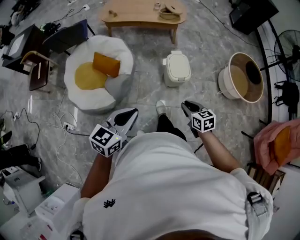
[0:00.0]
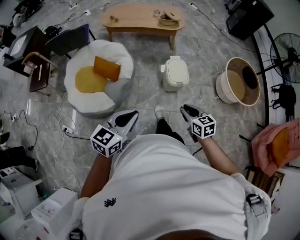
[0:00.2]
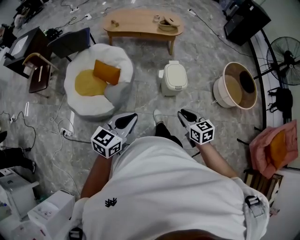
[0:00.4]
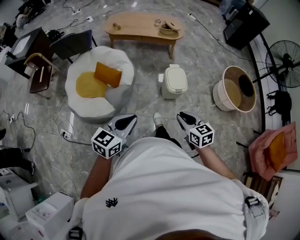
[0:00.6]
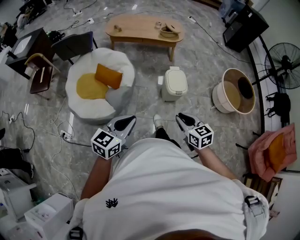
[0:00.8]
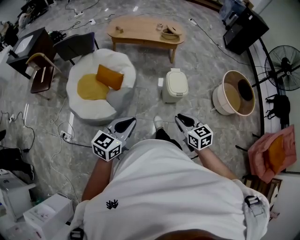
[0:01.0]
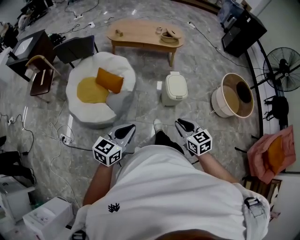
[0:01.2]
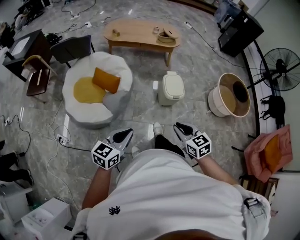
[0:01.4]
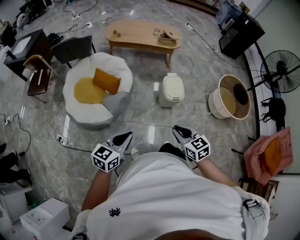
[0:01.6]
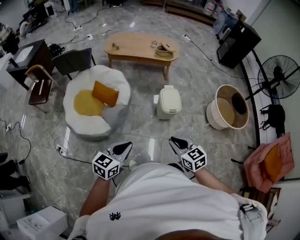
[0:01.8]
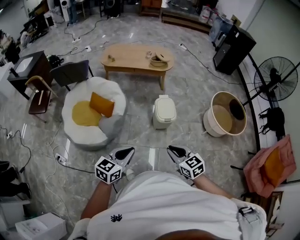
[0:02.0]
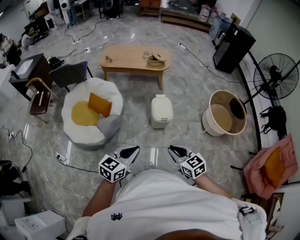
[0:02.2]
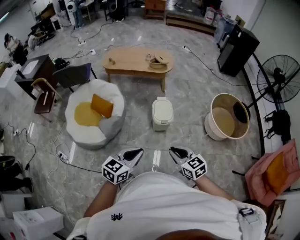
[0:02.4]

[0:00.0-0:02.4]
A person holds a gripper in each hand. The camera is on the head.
0:00.0 to 0:01.2: The right gripper moves upward, to the left and backward, some 15 cm. Meanwhile the left gripper shifts roughly 10 cm backward and to the left.
0:01.2 to 0:02.4: The grippers both shift to the right by some 20 cm.

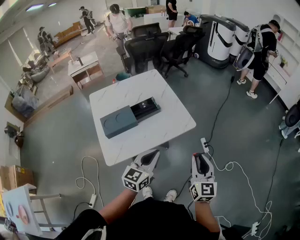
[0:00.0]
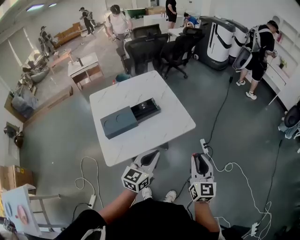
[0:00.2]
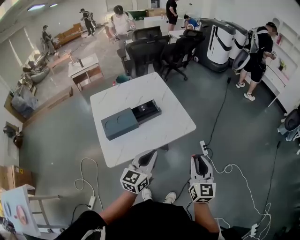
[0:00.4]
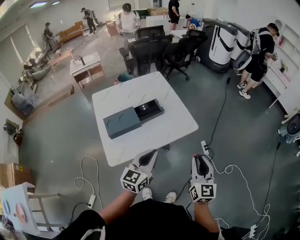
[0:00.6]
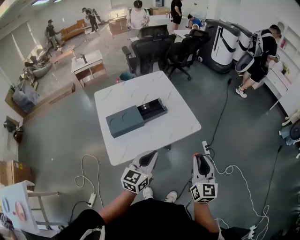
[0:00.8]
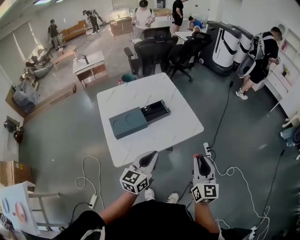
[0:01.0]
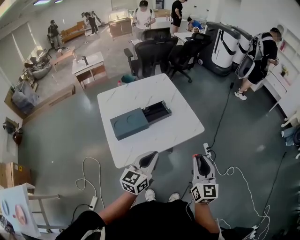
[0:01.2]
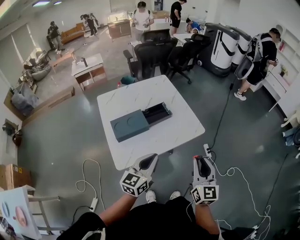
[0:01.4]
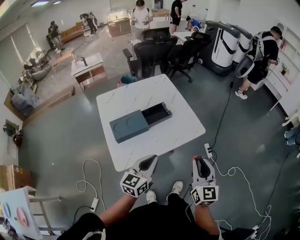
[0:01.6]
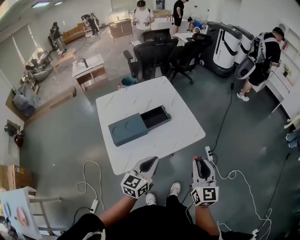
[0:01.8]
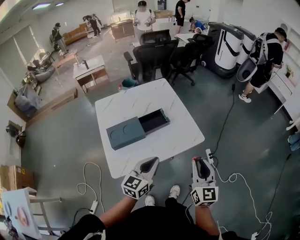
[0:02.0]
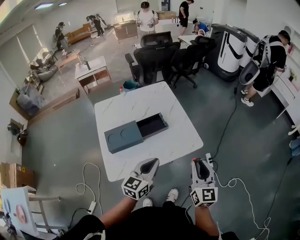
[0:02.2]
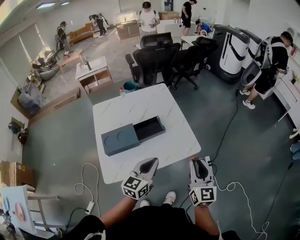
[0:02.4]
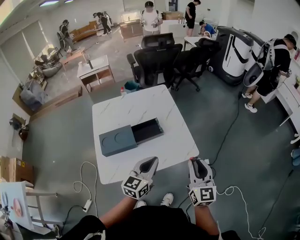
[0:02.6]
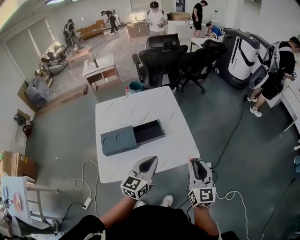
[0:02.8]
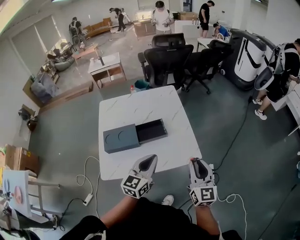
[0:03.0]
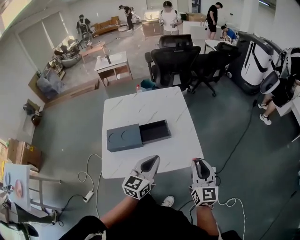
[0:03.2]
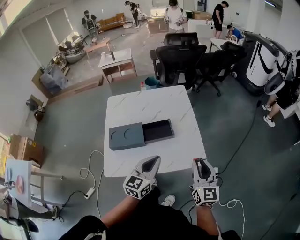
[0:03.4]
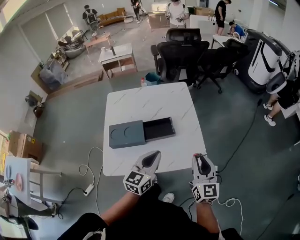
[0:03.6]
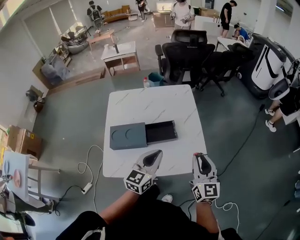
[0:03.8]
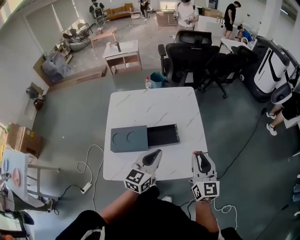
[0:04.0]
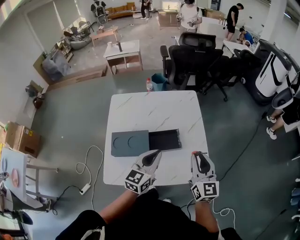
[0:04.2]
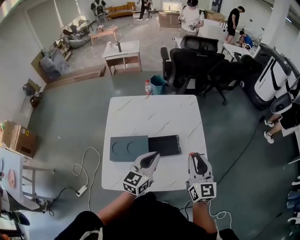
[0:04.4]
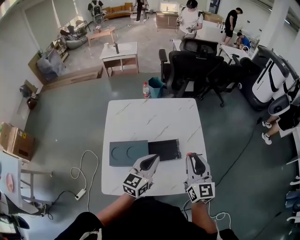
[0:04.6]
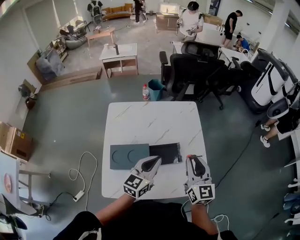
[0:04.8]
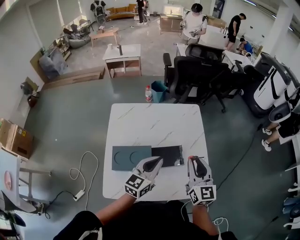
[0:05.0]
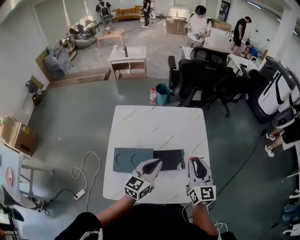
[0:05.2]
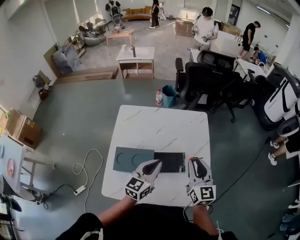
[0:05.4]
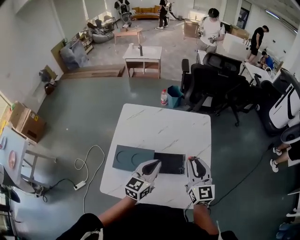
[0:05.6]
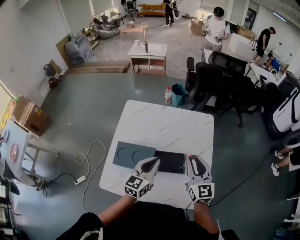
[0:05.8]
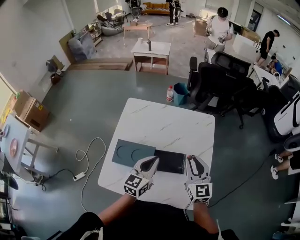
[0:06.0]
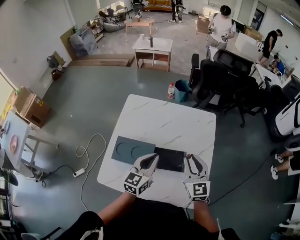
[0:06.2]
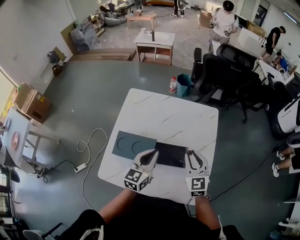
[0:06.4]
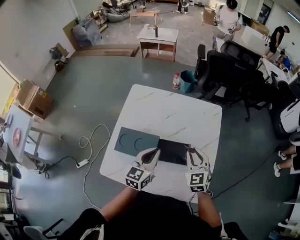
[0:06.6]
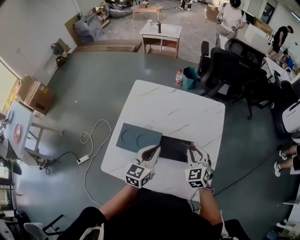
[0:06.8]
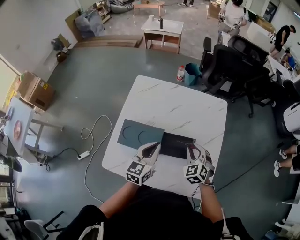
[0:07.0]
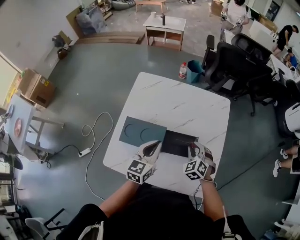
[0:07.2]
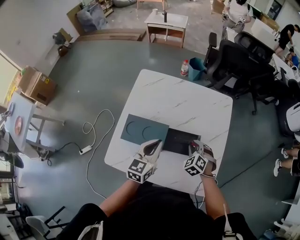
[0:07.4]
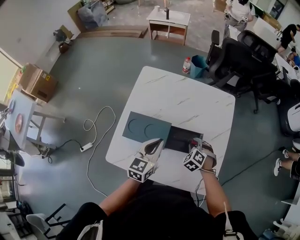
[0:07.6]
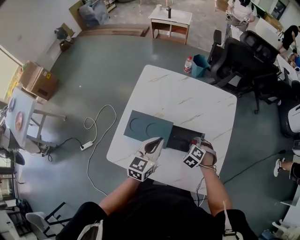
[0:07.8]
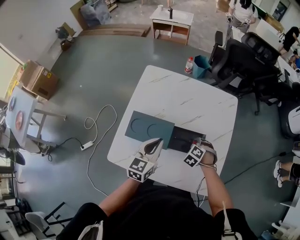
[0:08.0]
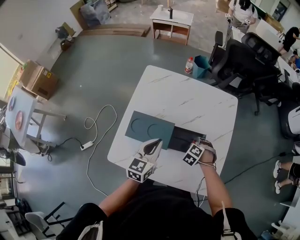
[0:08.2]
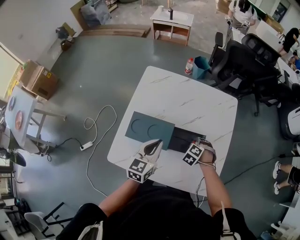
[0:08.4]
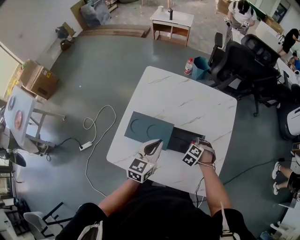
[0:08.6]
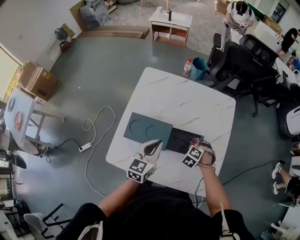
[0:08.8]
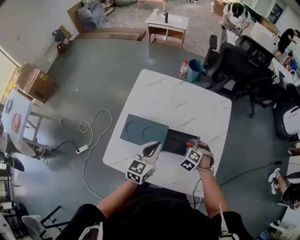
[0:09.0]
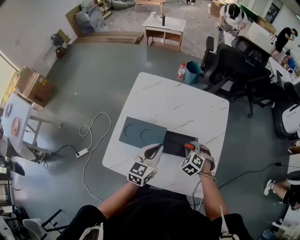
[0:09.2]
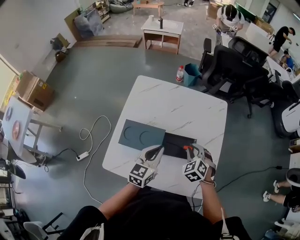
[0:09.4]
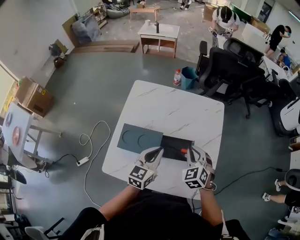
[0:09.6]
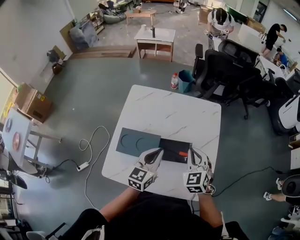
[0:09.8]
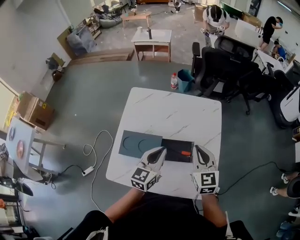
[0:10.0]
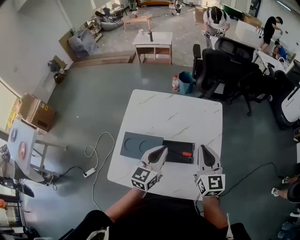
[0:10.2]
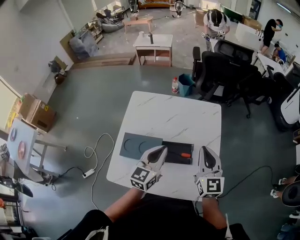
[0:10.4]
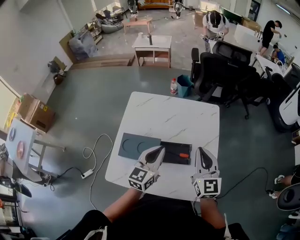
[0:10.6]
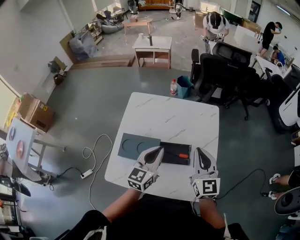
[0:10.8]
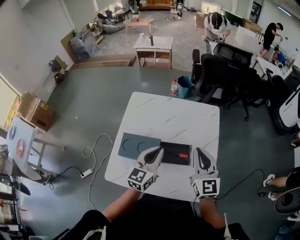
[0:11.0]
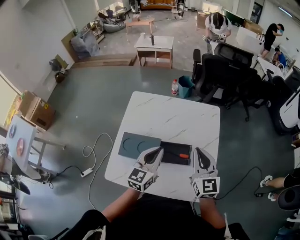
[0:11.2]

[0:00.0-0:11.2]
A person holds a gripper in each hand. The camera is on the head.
0:00.0 to 0:01.6: Both grippers move to the left, roughly 10 cm.
0:01.6 to 0:03.2: The right gripper is displaced forward by roughly 20 cm, while the left gripper goes roughly 15 cm forward and to the right.
0:03.2 to 0:04.8: The two grippers go some 20 cm forward and to the left.
0:04.8 to 0:06.4: The right gripper heads forward and downward, covering roughly 10 cm, and turns by about 30 degrees; the left gripper shifts by roughly 5 cm, and swivels roughly 20 degrees.
0:06.4 to 0:08.0: The right gripper goes about 20 cm downward, and tips its fingers downward by some 50 degrees, while the left gripper moves to the left, roughly 5 cm.
0:08.0 to 0:09.6: The left gripper shifts by some 5 cm; the right gripper travels upward by about 20 cm, and angles its fingers upward, by some 30 degrees.
0:09.6 to 0:11.2: The left gripper travels upward by about 5 cm. The right gripper shifts roughly 10 cm upward, and tips its fingers upward by approximately 30 degrees.

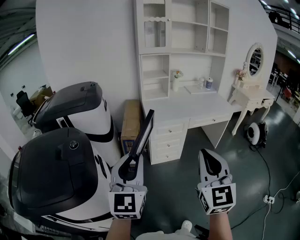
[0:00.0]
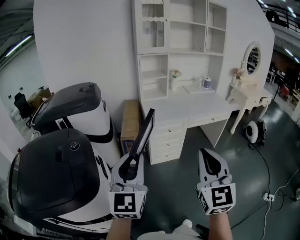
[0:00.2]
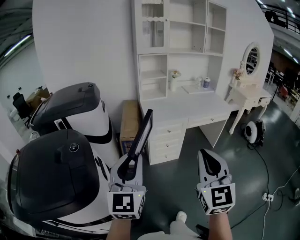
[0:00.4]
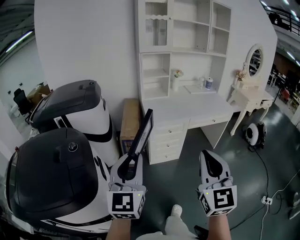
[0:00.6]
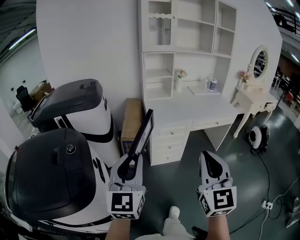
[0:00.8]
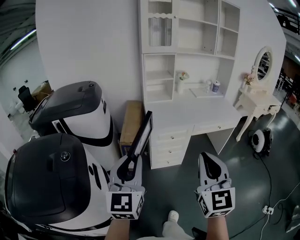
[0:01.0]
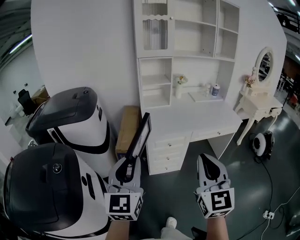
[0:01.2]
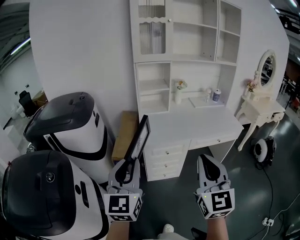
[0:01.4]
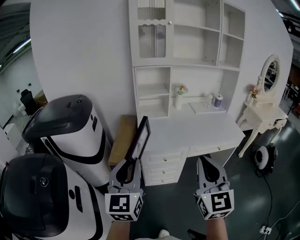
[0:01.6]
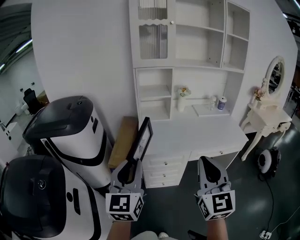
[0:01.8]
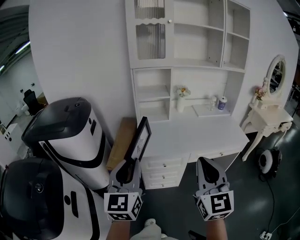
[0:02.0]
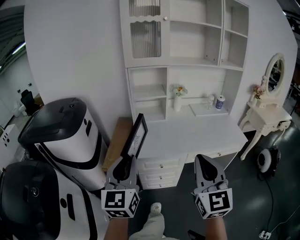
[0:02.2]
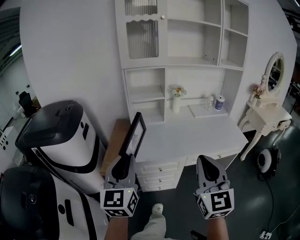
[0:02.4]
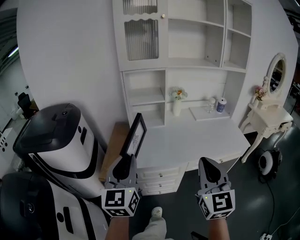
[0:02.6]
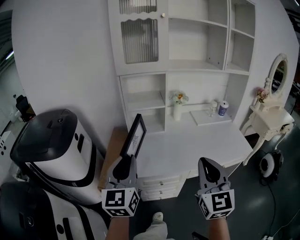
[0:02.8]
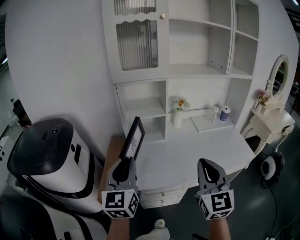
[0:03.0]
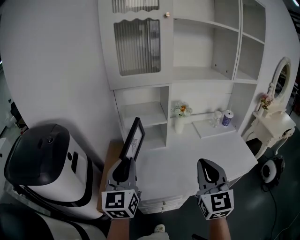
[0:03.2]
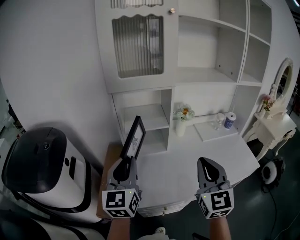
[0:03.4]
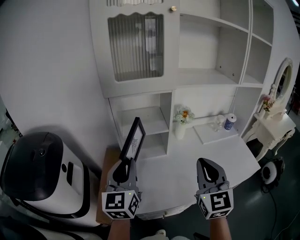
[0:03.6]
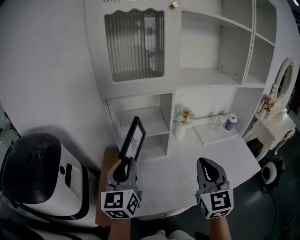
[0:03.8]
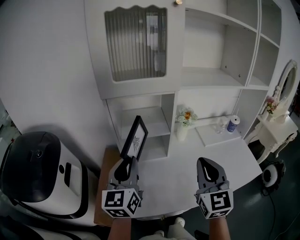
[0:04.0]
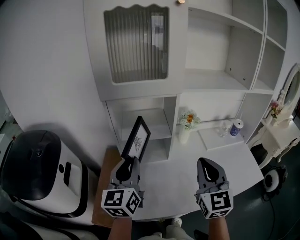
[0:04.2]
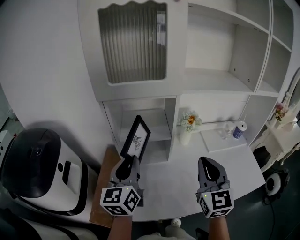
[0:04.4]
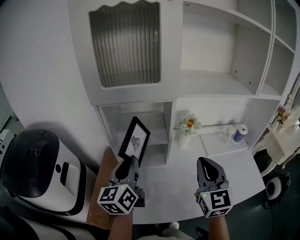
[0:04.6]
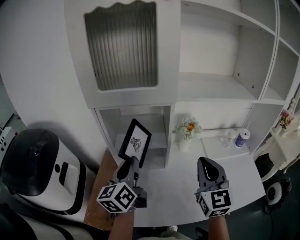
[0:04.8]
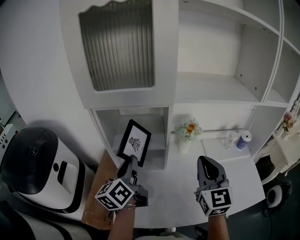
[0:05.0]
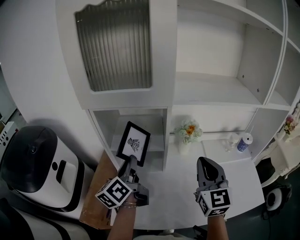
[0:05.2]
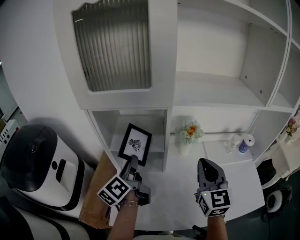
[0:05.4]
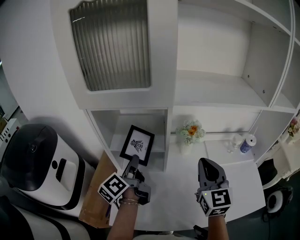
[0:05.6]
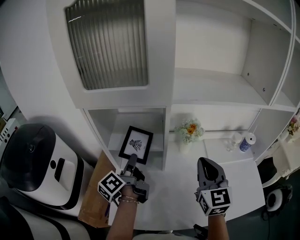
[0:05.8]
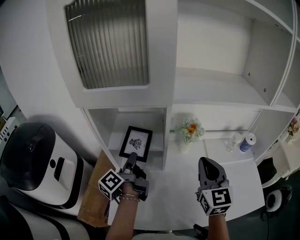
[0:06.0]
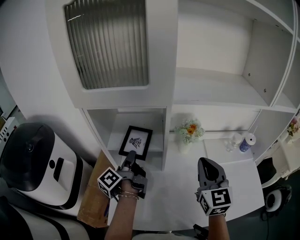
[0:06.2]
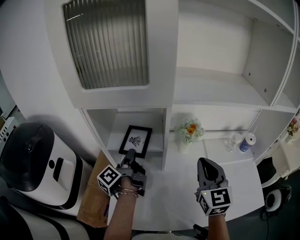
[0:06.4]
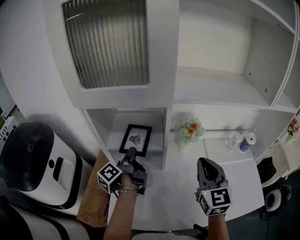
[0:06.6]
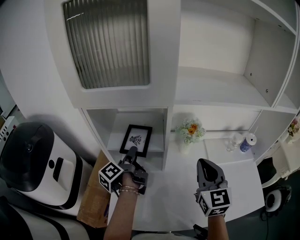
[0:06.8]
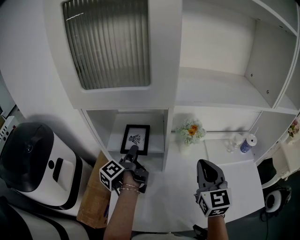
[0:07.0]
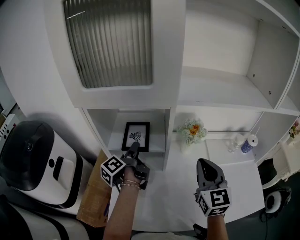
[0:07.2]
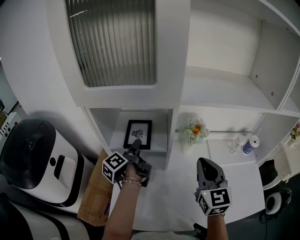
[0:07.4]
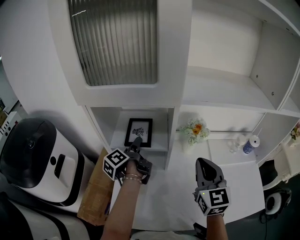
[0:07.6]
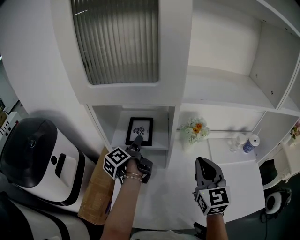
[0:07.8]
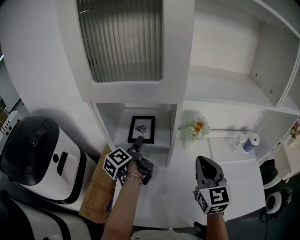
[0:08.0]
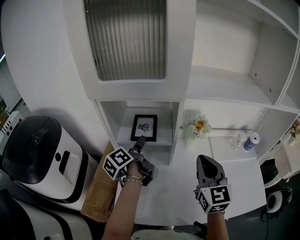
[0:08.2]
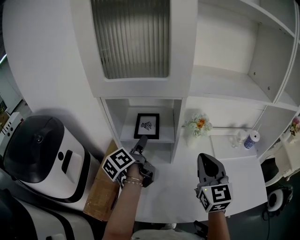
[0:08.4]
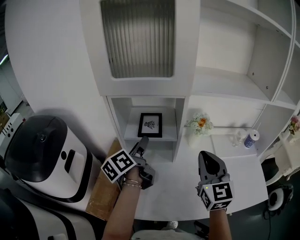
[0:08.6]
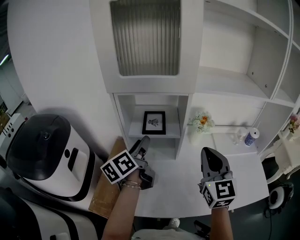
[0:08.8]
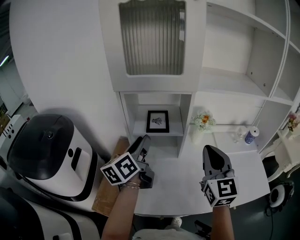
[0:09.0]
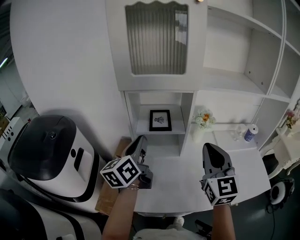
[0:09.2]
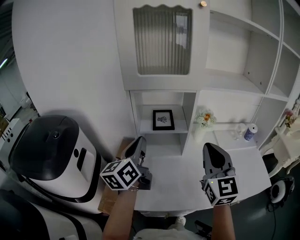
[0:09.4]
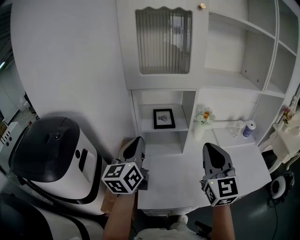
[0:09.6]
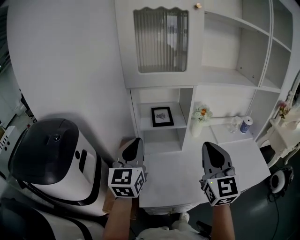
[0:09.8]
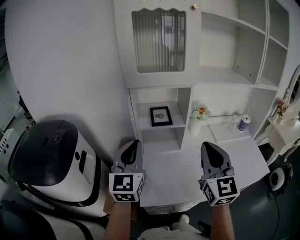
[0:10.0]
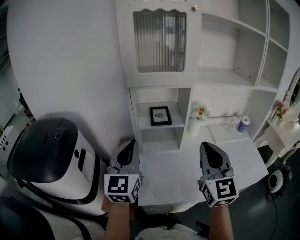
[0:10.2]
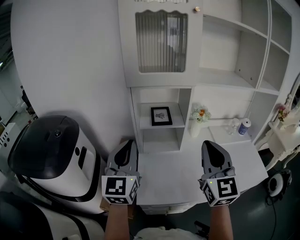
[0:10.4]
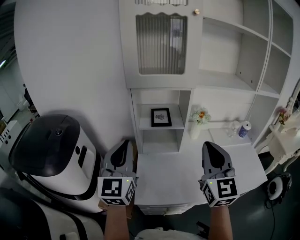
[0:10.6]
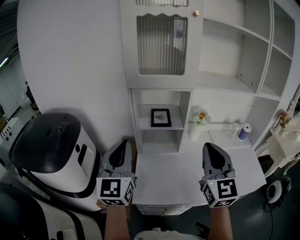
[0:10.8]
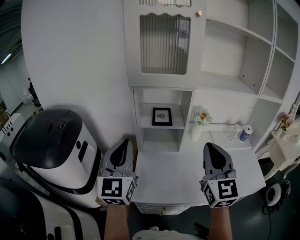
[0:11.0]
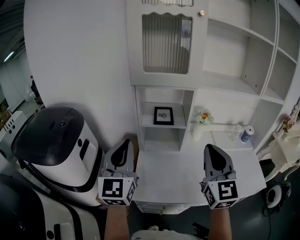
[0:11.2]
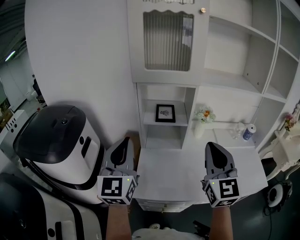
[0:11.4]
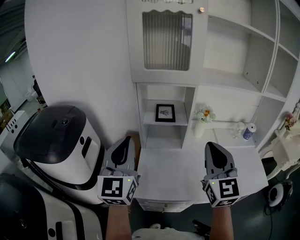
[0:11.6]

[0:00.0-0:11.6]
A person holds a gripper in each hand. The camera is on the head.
0:00.0 to 0:01.4: Both grippers travel together forward, roughly 20 cm.
0:01.4 to 0:02.8: The grippers both shift forward by some 25 cm.
0:02.8 to 0:04.4: The two grippers go about 30 cm forward.
0:04.4 to 0:05.8: The right gripper heads forward and to the right, covering some 15 cm. Meanwhile the left gripper travels forward and downward by about 15 cm, and twists roughly 60 degrees counterclockwise, seen from behind.
0:05.8 to 0:07.2: The left gripper goes some 5 cm forward, and opens.
0:07.2 to 0:08.8: The right gripper shifts about 10 cm backward, to the left and upward, while the left gripper goes approximately 15 cm upward and backward, and turns by about 30 degrees.
0:08.8 to 0:10.2: The left gripper heads backward, upward and to the left, covering roughly 20 cm, rolls clockwise, seen from behind, by roughly 60 degrees, and closes up; the right gripper travels backward, to the left and upward by about 15 cm.
0:10.2 to 0:11.6: The left gripper goes about 5 cm backward.
